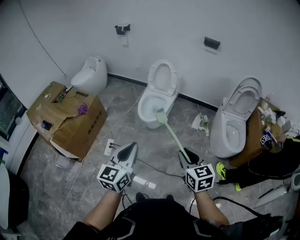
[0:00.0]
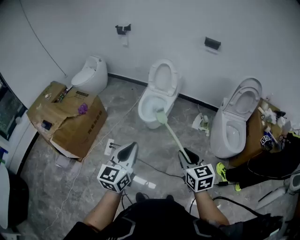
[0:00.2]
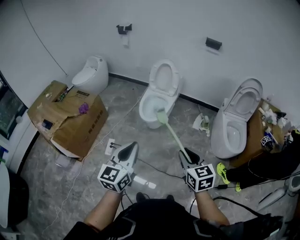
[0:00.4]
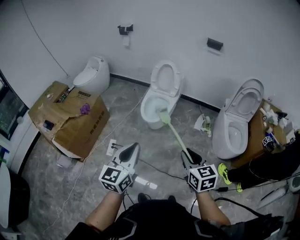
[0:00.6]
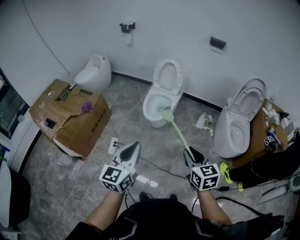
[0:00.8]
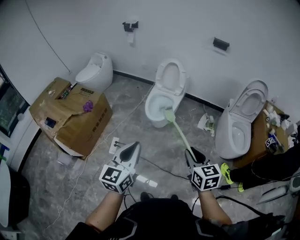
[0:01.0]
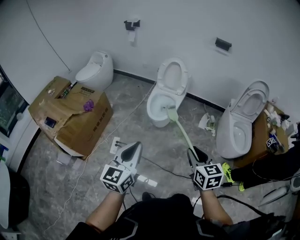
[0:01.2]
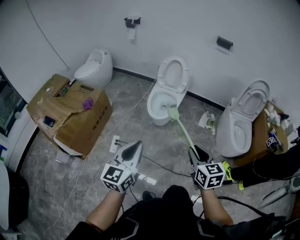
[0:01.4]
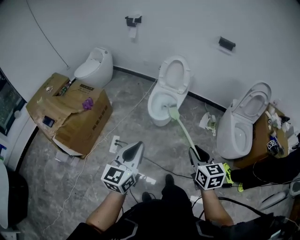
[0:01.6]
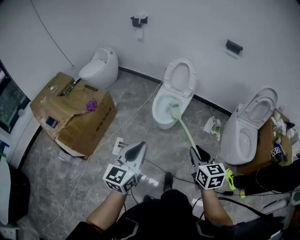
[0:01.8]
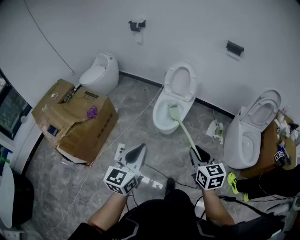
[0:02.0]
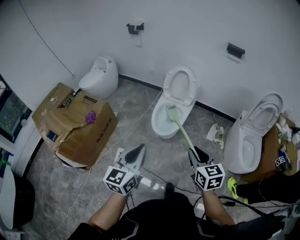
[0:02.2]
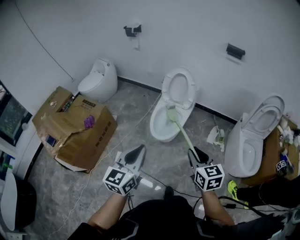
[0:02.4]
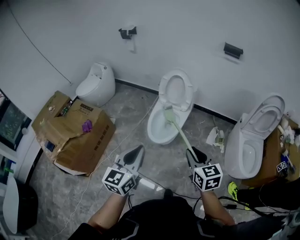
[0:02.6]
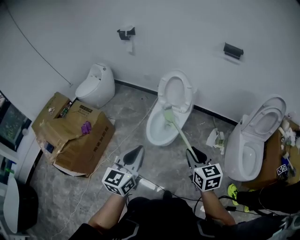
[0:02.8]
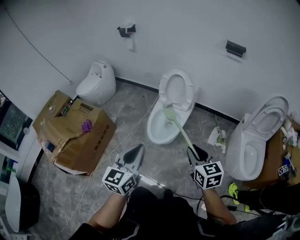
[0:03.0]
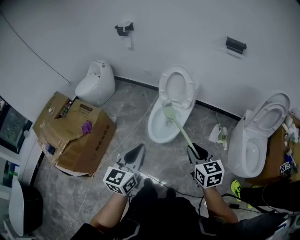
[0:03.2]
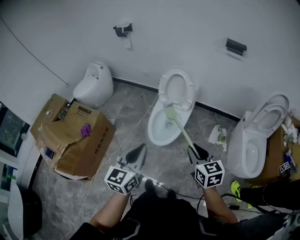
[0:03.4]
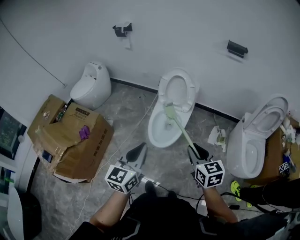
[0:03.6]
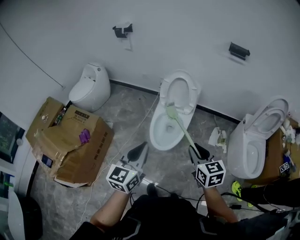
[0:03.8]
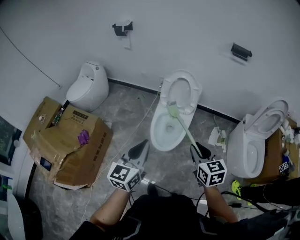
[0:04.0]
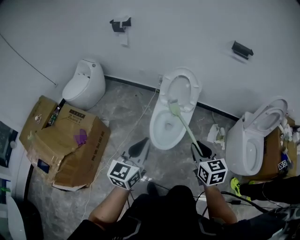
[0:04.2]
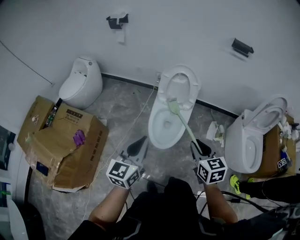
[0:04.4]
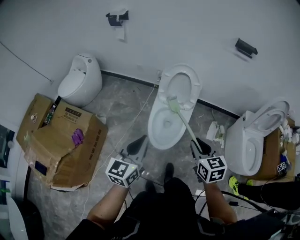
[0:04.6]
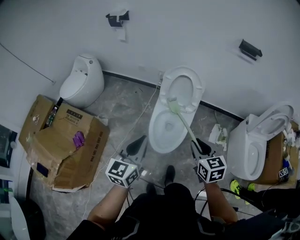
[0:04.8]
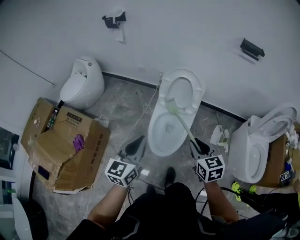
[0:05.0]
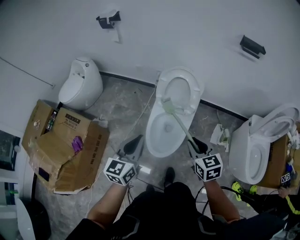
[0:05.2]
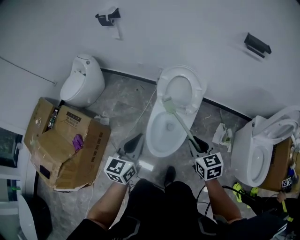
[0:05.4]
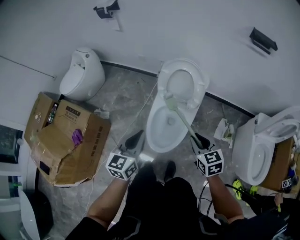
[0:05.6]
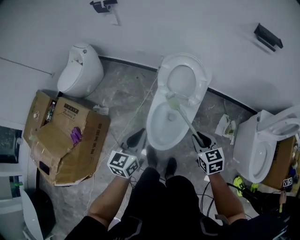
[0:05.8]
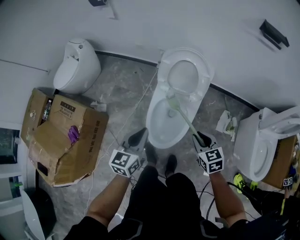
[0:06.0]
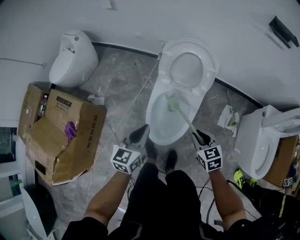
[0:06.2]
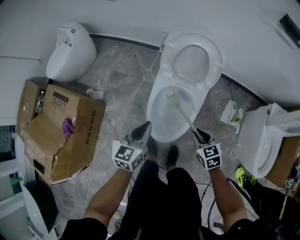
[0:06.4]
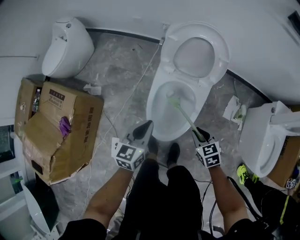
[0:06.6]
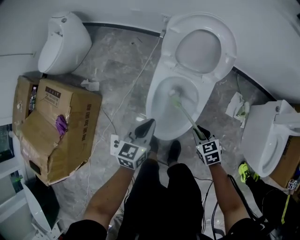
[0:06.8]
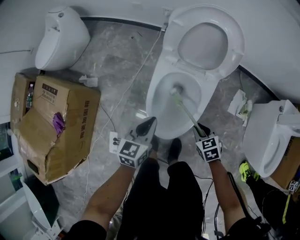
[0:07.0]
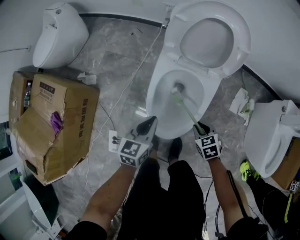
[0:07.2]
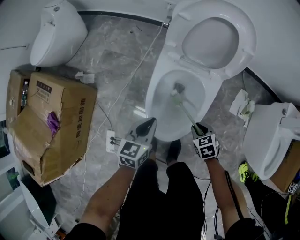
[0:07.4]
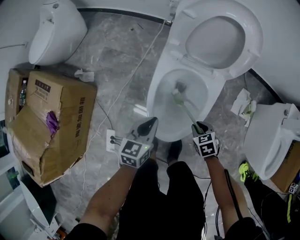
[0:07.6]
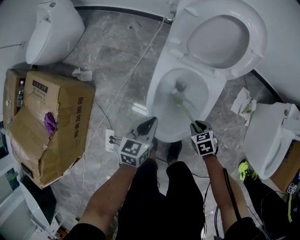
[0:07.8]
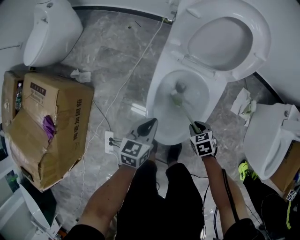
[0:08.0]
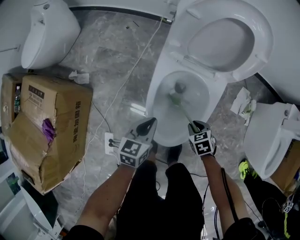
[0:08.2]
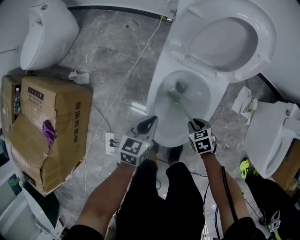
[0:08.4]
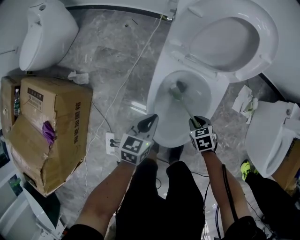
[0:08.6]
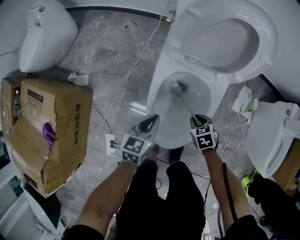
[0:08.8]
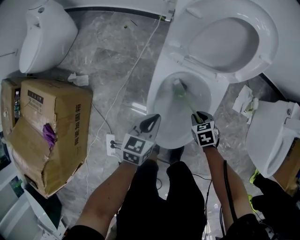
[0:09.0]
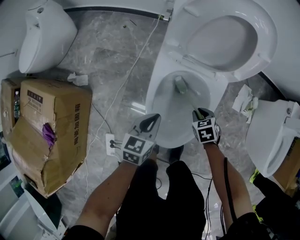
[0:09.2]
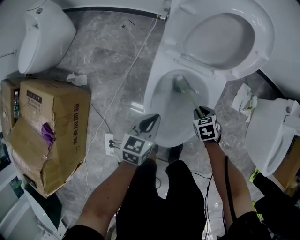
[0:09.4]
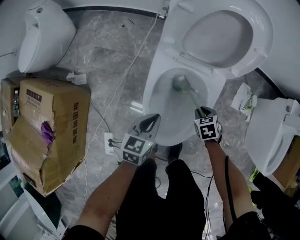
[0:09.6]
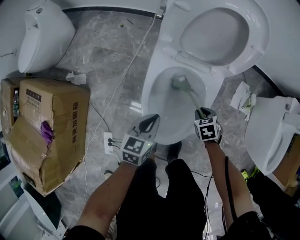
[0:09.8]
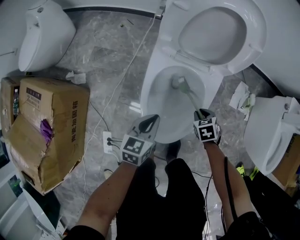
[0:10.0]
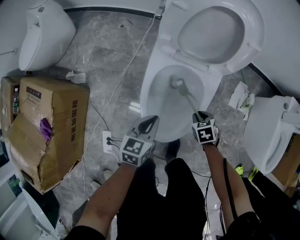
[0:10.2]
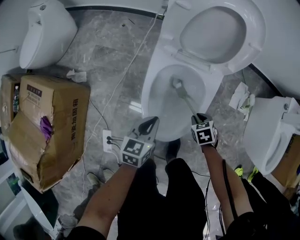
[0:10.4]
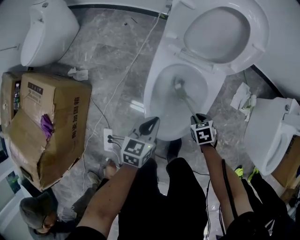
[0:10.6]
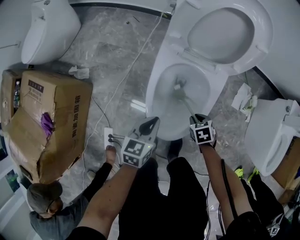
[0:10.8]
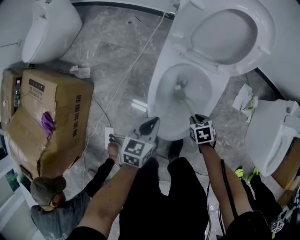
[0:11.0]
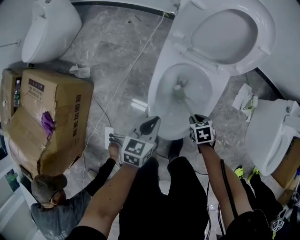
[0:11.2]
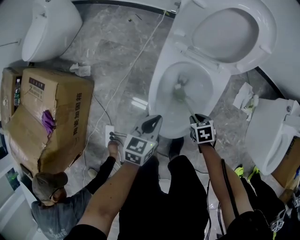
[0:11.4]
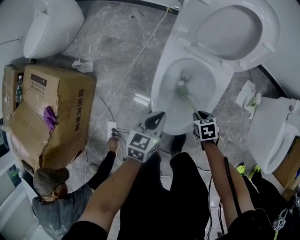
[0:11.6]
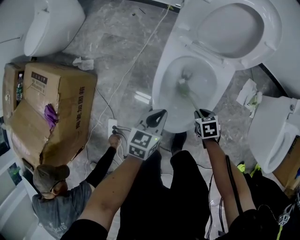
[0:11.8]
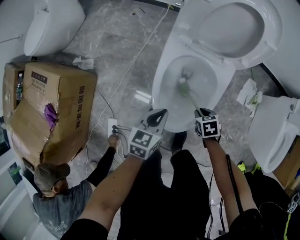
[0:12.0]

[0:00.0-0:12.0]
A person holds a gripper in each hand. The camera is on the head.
0:00.0 to 0:01.6: The left gripper moves to the left, some 10 cm; the right gripper shifts roughly 10 cm to the left and forward.
0:01.6 to 0:03.0: Both grippers move forward, about 25 cm.
0:03.0 to 0:04.4: The two grippers go roughly 20 cm forward and to the left.
0:04.4 to 0:06.0: The two grippers go approximately 25 cm forward and downward.
0:06.0 to 0:07.6: The two grippers go roughly 30 cm downward. The right gripper turns by some 30 degrees.
0:07.6 to 0:09.0: Both grippers move forward, roughly 5 cm.
0:09.0 to 0:10.4: The right gripper changes place by about 5 cm. The left gripper moves about 5 cm.
0:10.4 to 0:12.0: The grippers move only a little.

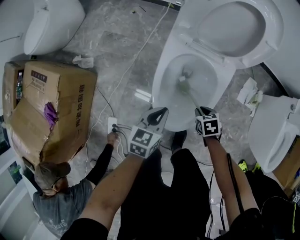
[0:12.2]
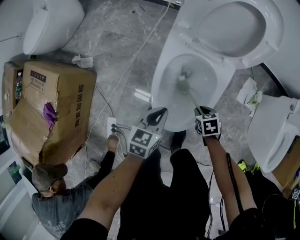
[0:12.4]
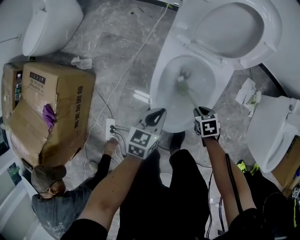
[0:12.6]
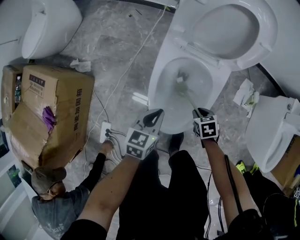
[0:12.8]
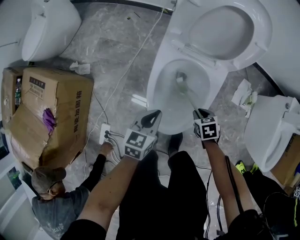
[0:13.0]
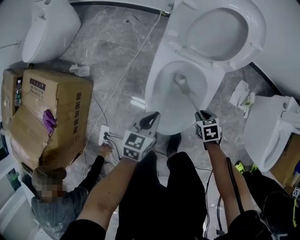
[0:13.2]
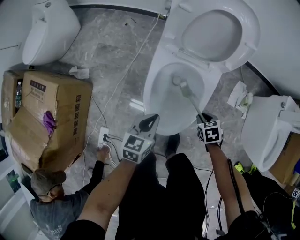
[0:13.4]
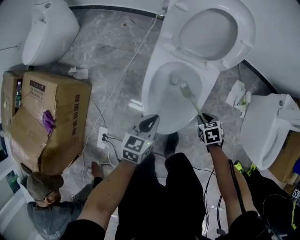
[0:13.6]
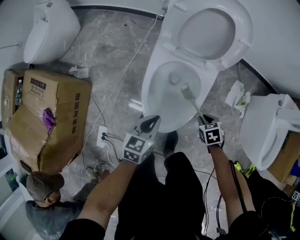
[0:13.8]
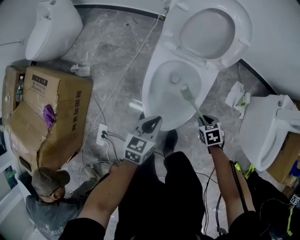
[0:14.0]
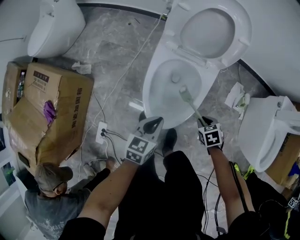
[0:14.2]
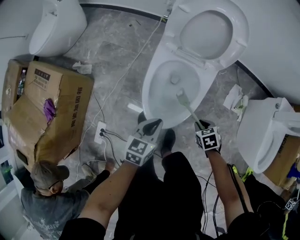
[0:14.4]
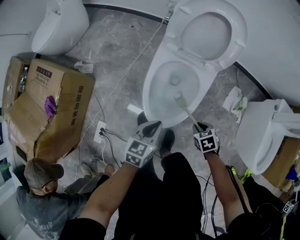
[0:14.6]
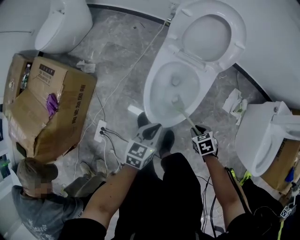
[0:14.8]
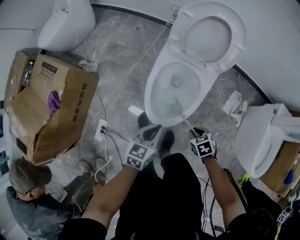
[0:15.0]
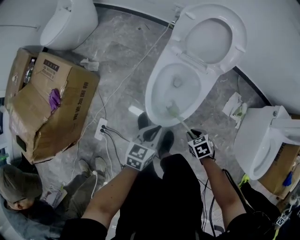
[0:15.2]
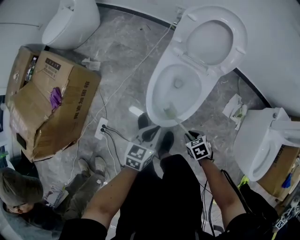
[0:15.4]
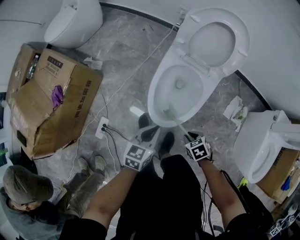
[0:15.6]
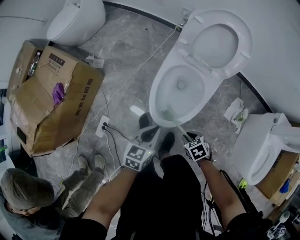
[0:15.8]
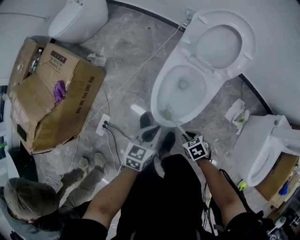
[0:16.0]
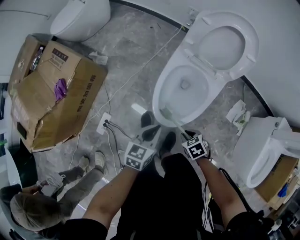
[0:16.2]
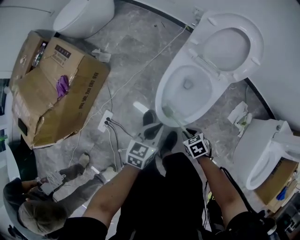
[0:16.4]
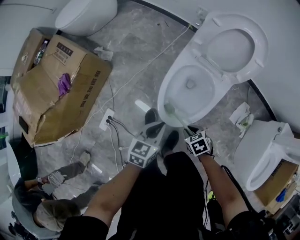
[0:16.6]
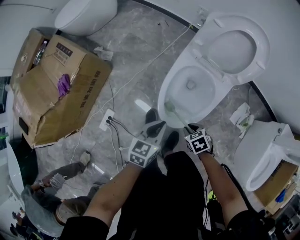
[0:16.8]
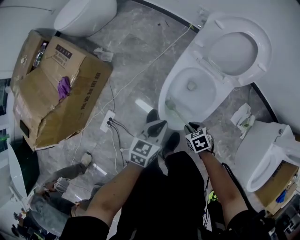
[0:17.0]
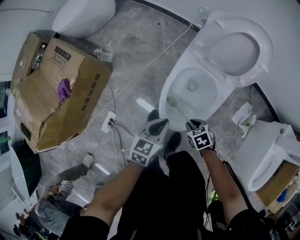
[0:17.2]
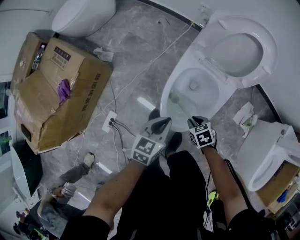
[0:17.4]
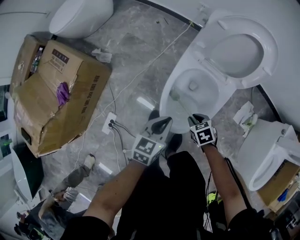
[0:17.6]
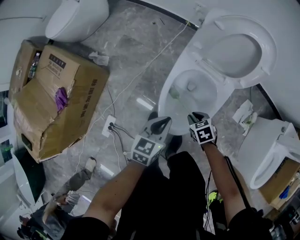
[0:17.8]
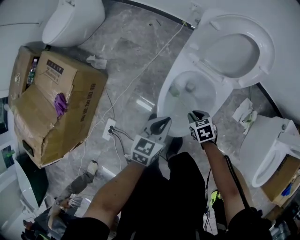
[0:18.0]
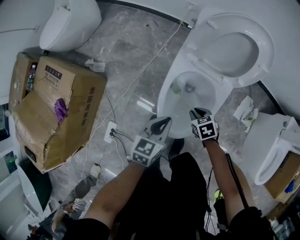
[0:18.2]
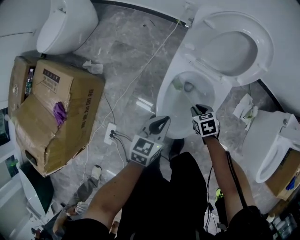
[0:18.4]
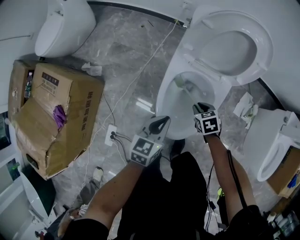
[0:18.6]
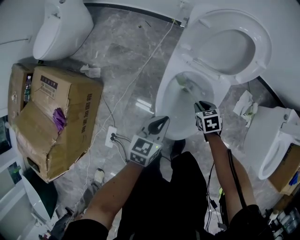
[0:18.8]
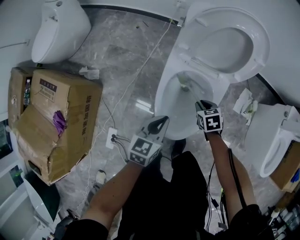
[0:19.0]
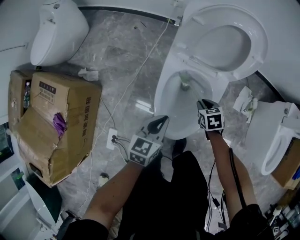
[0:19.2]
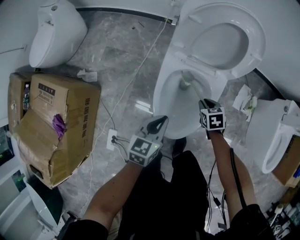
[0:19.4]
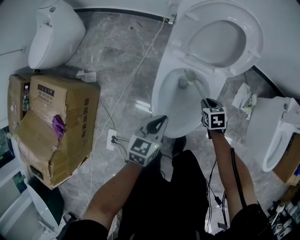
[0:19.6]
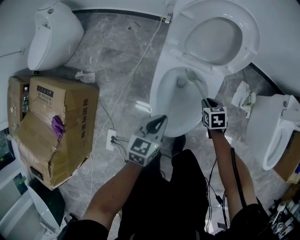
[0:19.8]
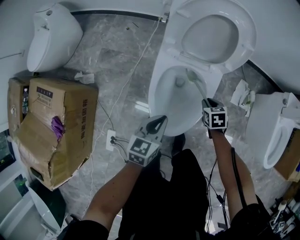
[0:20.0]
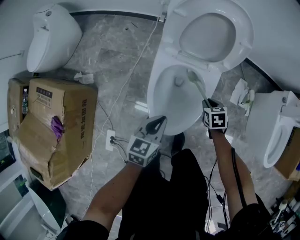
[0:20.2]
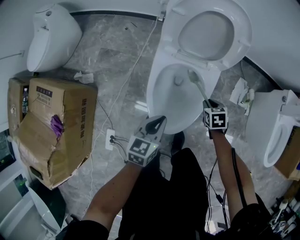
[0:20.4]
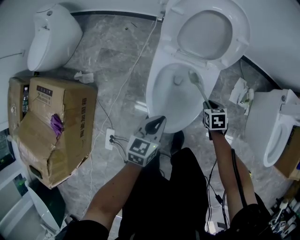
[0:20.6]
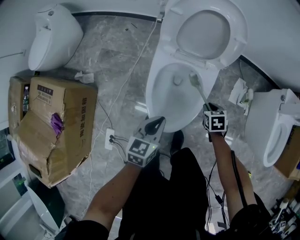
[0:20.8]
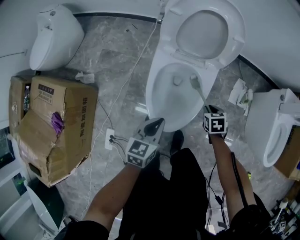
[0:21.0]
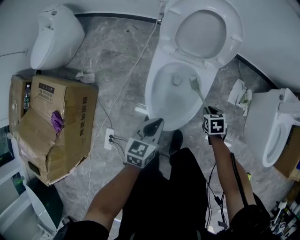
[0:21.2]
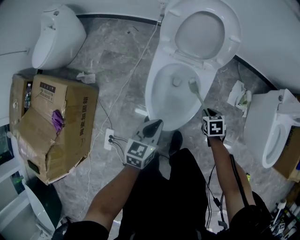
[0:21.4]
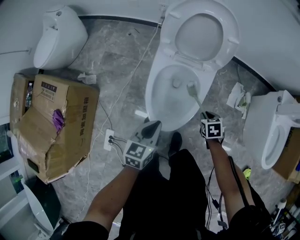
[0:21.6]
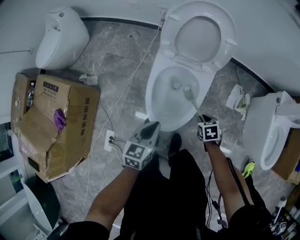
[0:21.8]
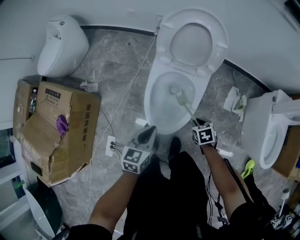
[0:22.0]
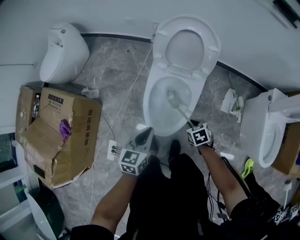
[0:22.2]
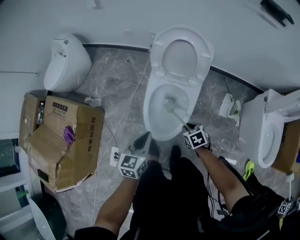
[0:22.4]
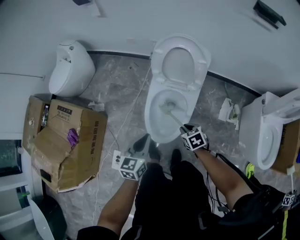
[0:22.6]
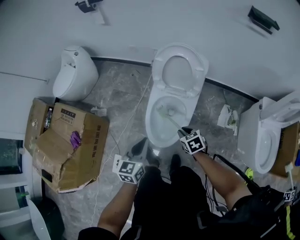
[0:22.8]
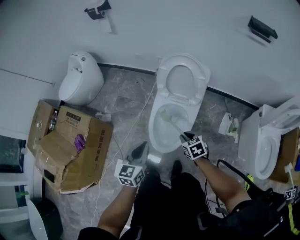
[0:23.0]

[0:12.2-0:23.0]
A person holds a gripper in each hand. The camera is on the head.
0:12.2 to 0:13.8: The right gripper shifts some 10 cm to the right and upward. Meanwhile the left gripper ends up roughly 5 cm from where it was.
0:13.8 to 0:15.2: Both grippers move backward, roughly 10 cm.
0:15.2 to 0:16.8: The right gripper moves to the left and forward, roughly 10 cm.
0:16.8 to 0:18.4: Both grippers travel together forward, about 15 cm.
0:18.4 to 0:20.0: The right gripper travels to the right by approximately 10 cm.
0:20.0 to 0:21.4: The left gripper is displaced backward by some 5 cm. The right gripper is displaced backward and to the right by approximately 10 cm.
0:21.4 to 0:23.0: Both grippers travel together upward, approximately 20 cm. The right gripper turns by approximately 20 degrees.

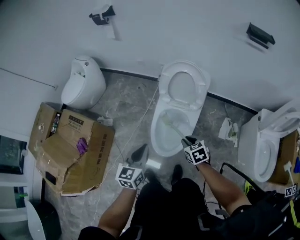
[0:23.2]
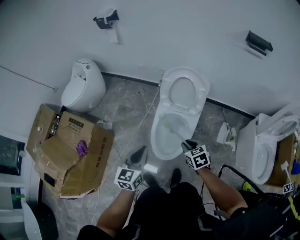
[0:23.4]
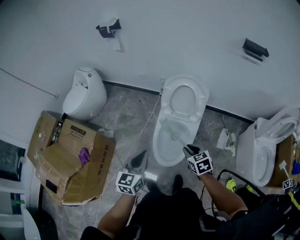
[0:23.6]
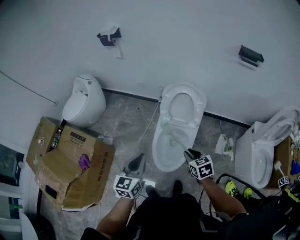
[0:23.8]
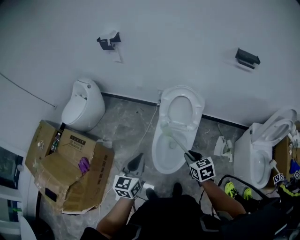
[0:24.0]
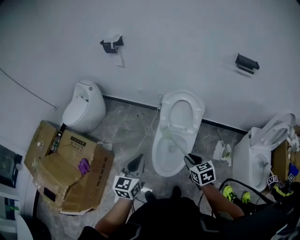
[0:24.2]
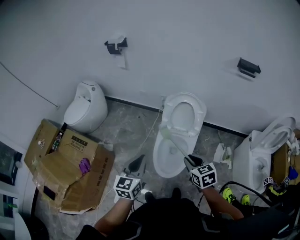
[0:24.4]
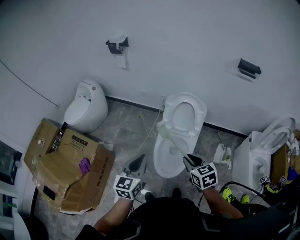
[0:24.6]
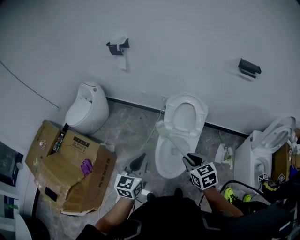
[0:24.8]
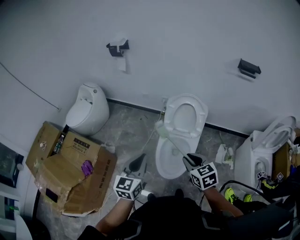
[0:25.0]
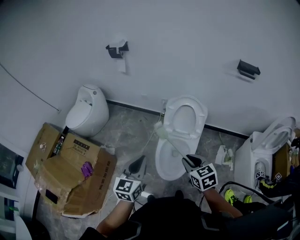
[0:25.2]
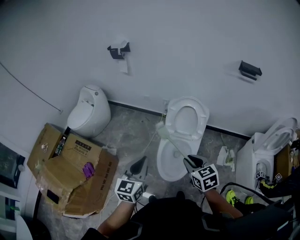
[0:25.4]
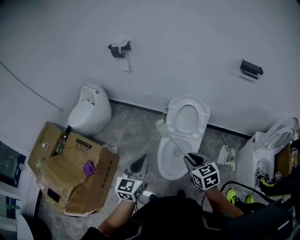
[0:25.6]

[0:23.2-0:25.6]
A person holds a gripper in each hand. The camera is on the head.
0:23.2 to 0:24.4: The left gripper is displaced upward and to the left by about 10 cm. The right gripper goes approximately 15 cm upward.
0:24.4 to 0:25.6: The right gripper shifts by about 5 cm.
